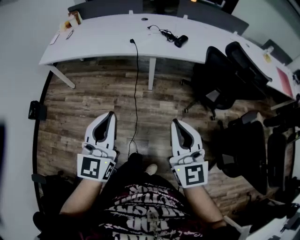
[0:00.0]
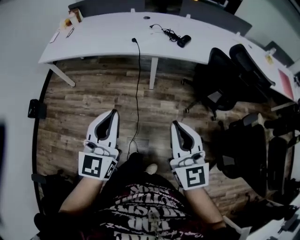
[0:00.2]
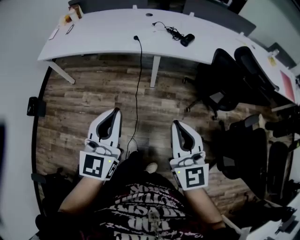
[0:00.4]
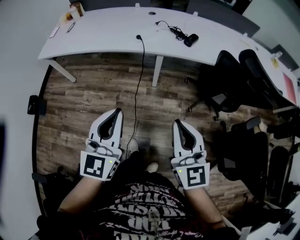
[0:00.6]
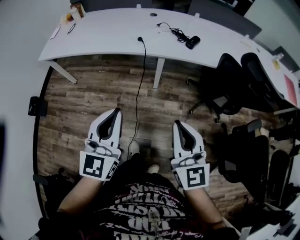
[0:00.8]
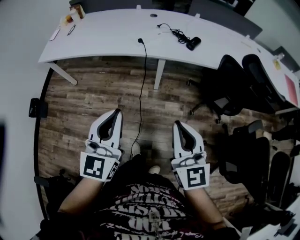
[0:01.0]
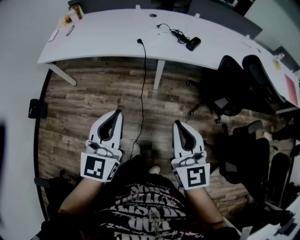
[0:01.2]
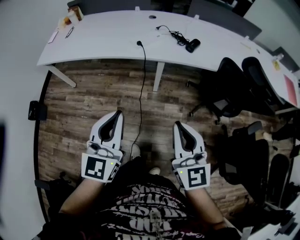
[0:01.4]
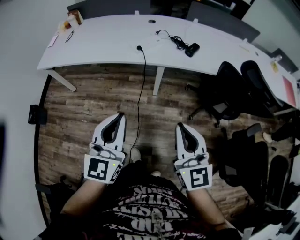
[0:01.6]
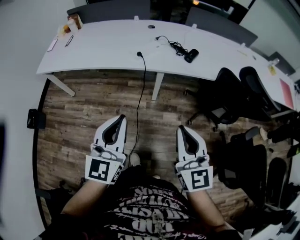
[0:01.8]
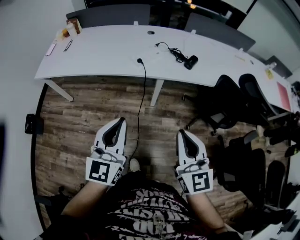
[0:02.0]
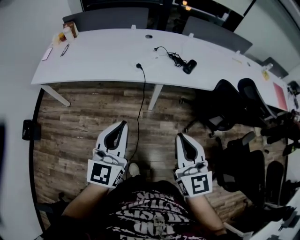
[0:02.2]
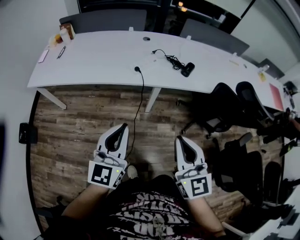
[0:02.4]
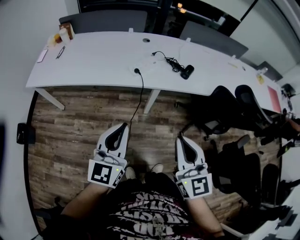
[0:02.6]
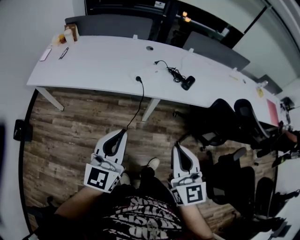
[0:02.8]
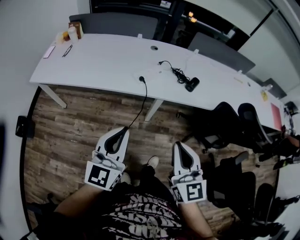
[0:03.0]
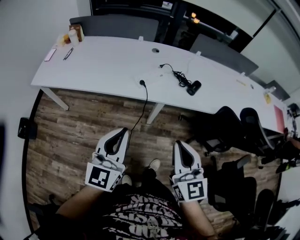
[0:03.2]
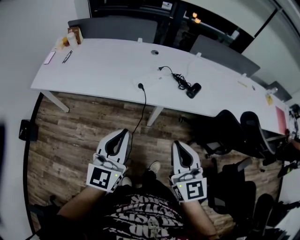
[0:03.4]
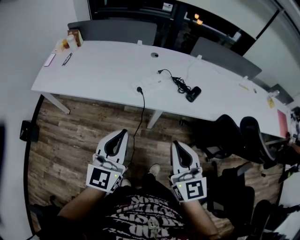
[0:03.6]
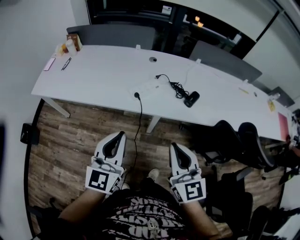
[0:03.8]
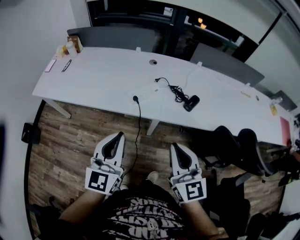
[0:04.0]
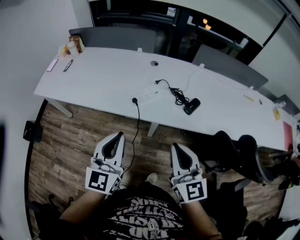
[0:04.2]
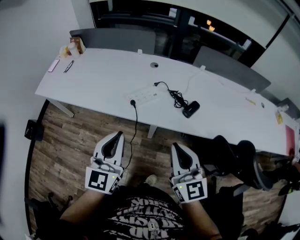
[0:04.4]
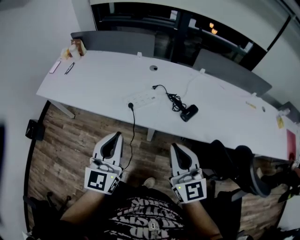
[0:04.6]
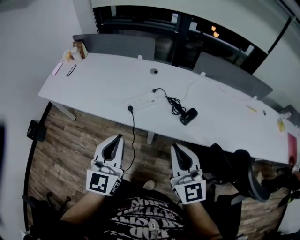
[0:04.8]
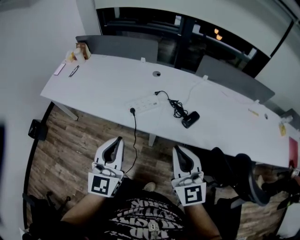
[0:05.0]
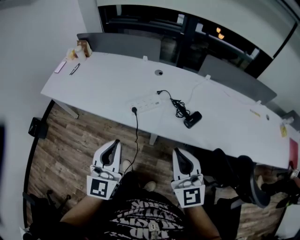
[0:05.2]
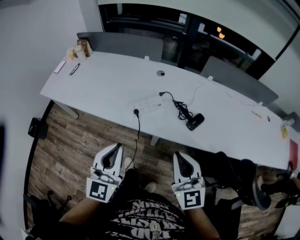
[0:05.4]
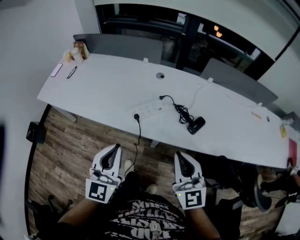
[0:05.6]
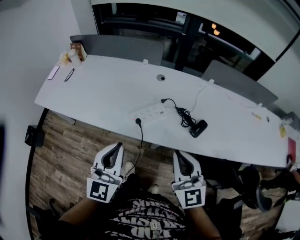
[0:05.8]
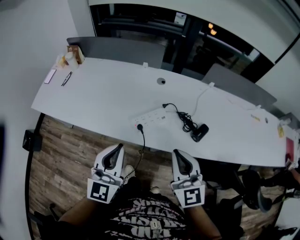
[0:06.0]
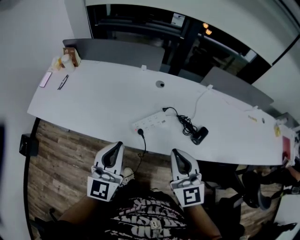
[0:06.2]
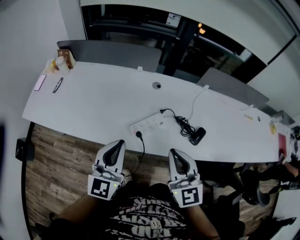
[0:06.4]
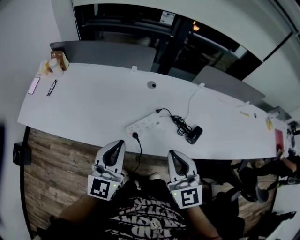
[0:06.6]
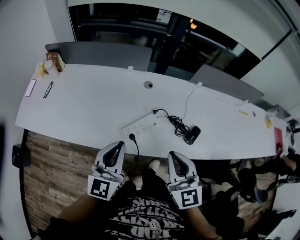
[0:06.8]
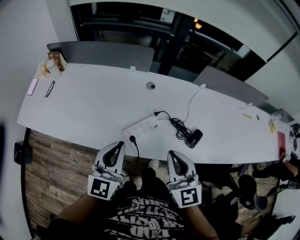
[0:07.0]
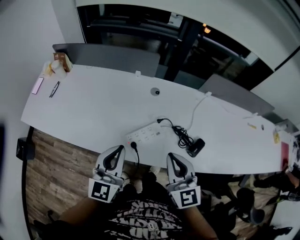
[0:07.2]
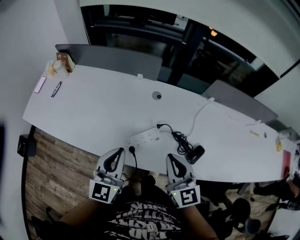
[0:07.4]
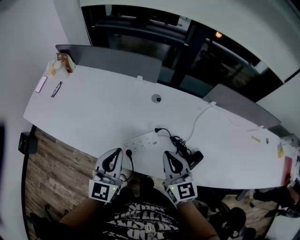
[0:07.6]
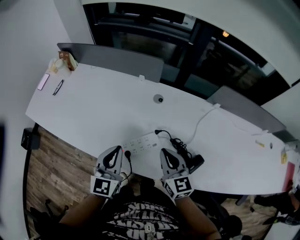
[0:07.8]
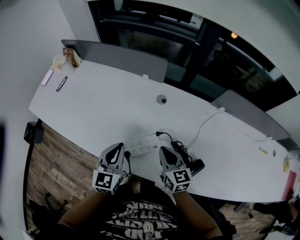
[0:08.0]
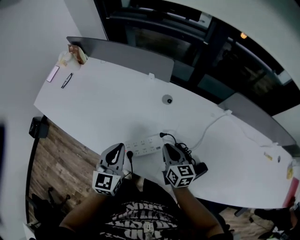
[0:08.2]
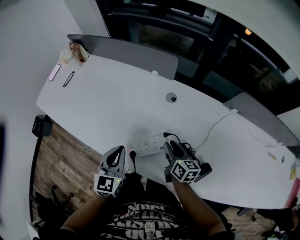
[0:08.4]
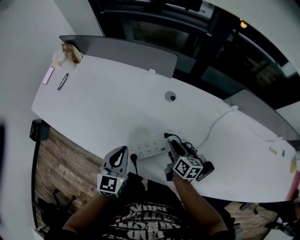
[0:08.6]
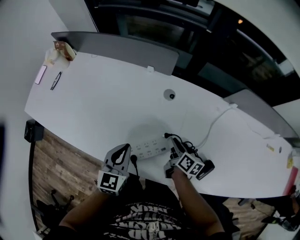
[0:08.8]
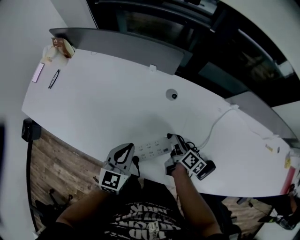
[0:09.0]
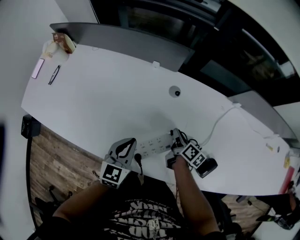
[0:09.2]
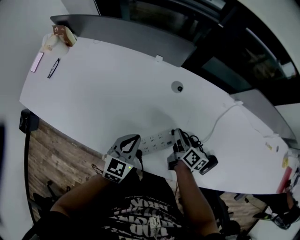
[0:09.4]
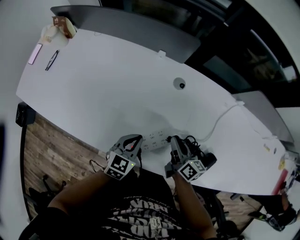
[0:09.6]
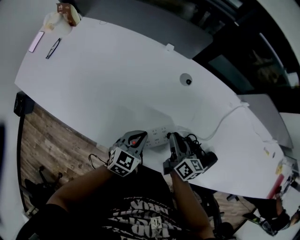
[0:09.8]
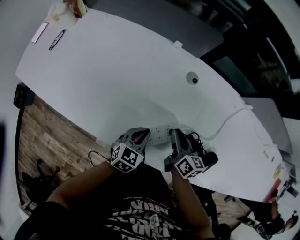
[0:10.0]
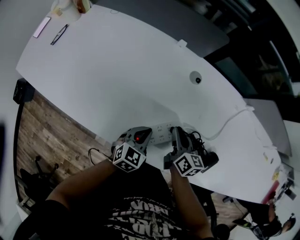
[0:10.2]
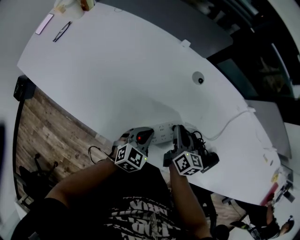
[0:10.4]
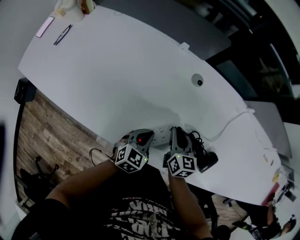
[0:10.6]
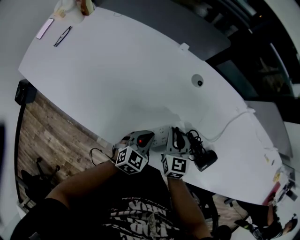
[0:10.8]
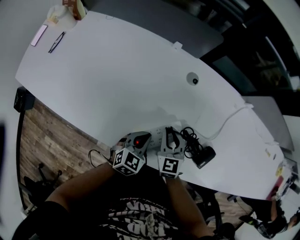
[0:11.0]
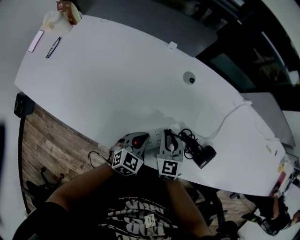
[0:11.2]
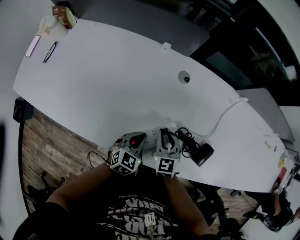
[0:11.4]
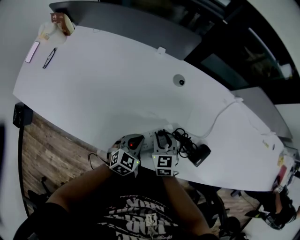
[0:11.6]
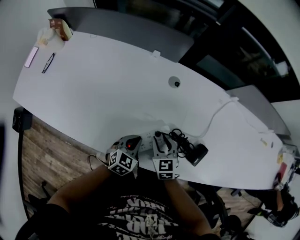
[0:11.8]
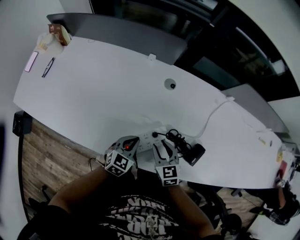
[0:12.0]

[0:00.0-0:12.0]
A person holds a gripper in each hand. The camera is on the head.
0.0 to 1.6 s: The grippers both shift forward by roughly 10 cm.
1.6 to 3.0 s: Both grippers move forward and to the left, approximately 10 cm.
3.0 to 4.4 s: Both grippers travel together forward and to the right, about 20 cm.
4.4 to 6.0 s: Both grippers travel together forward and to the left, about 15 cm.
6.0 to 7.6 s: The left gripper heads forward, covering roughly 15 cm, while the right gripper is displaced forward and downward by some 20 cm.
7.6 to 9.0 s: The right gripper moves downward and forward, some 25 cm, rotates around the line of its fingers by roughly 60 degrees, clockwise from behind, and opens up; the left gripper is displaced downward and forward by some 15 cm.
9.0 to 10.4 s: The right gripper moves to the left, about 5 cm, and turns by roughly 30 degrees; the left gripper moves downward, approximately 15 cm, and swivels approximately 20 degrees.
10.4 to 12.0 s: The right gripper is displaced backward by roughly 5 cm, and changes its angle by about 30 degrees.

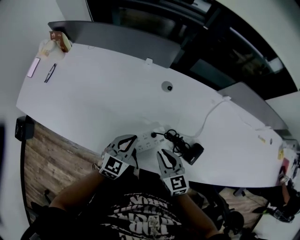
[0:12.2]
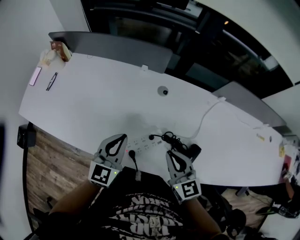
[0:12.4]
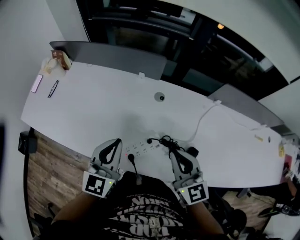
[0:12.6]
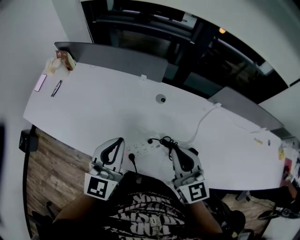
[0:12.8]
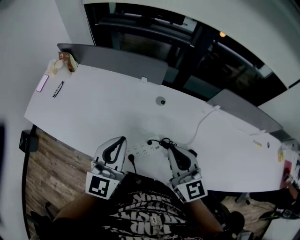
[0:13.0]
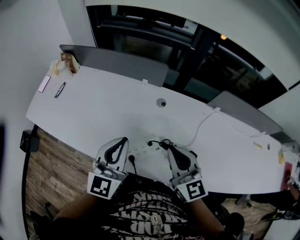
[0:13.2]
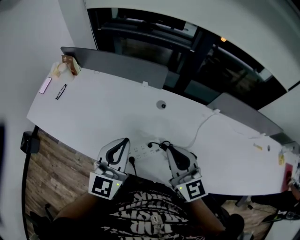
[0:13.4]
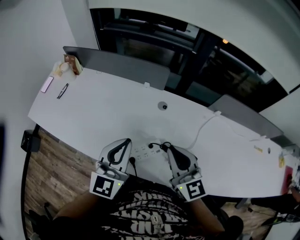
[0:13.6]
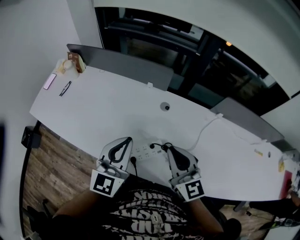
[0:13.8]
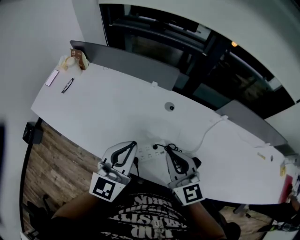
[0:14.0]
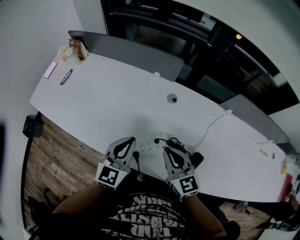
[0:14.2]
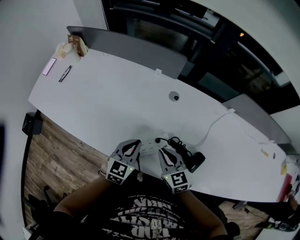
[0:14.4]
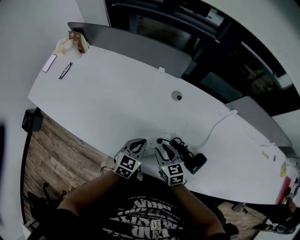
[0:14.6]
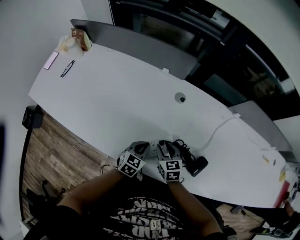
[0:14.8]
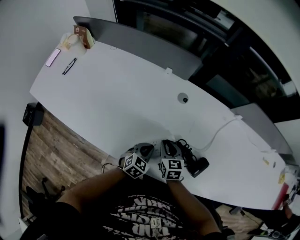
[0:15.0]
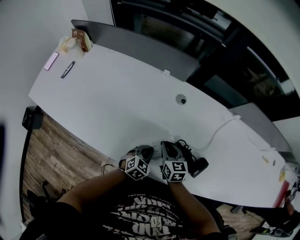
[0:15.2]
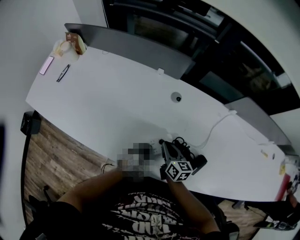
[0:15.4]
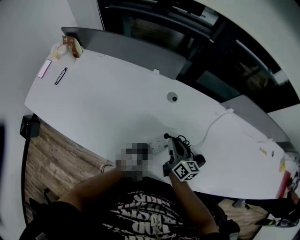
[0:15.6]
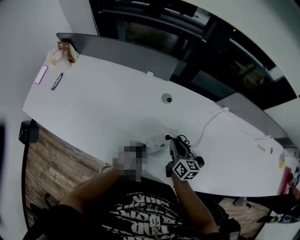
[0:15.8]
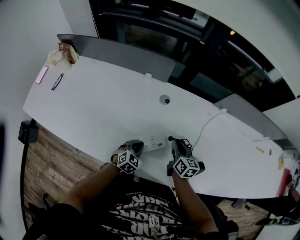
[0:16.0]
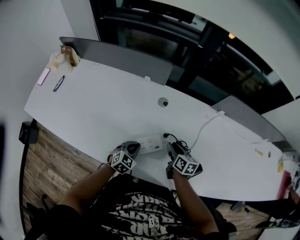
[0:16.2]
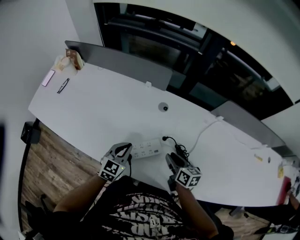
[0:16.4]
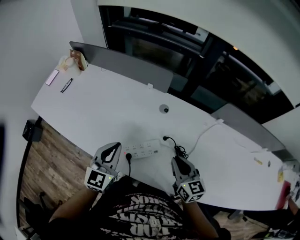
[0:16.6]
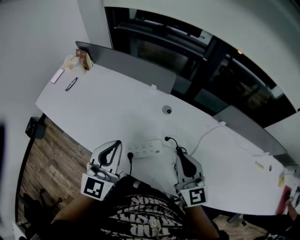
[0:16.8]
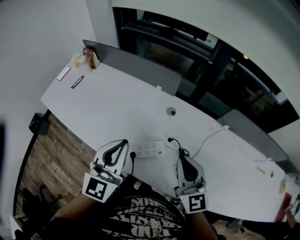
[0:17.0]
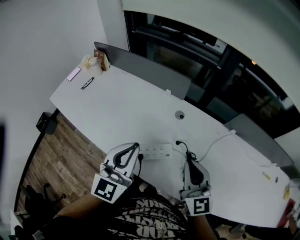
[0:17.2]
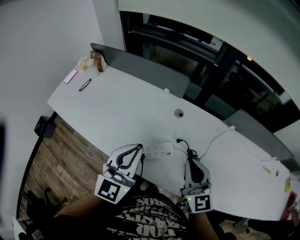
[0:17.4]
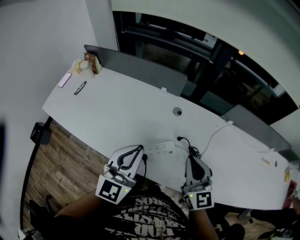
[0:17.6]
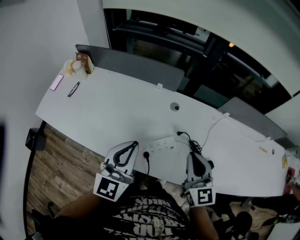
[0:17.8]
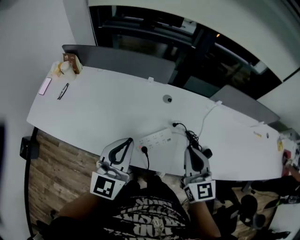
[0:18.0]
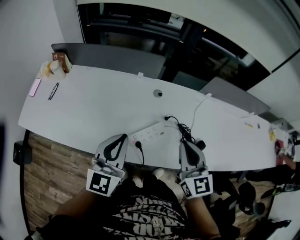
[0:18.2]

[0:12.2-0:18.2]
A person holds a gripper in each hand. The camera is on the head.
12.2 to 13.8 s: Both grippers travel together upward, about 20 cm. The right gripper rotates approximately 20 degrees; the left gripper turns by some 30 degrees.
13.8 to 15.2 s: Both grippers travel together downward, some 30 cm. The right gripper rotates some 40 degrees, and opens and closes again; the left gripper tilts its fingers about 40 degrees downward.
15.2 to 16.6 s: The left gripper goes approximately 25 cm upward, and points its fingers about 30 degrees further upward. The right gripper swings up and down, approximately 15 cm each way, with 2 reversals.
16.6 to 18.2 s: The left gripper shifts approximately 10 cm upward and to the left. Meanwhile the right gripper goes some 15 cm upward, to the left and backward, and turns by roughly 30 degrees.

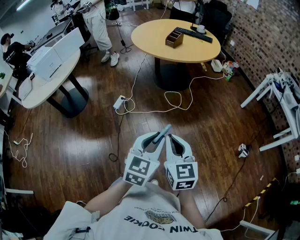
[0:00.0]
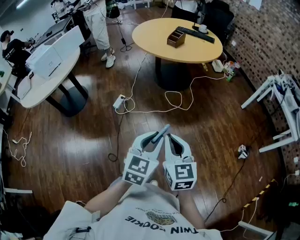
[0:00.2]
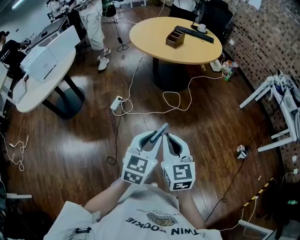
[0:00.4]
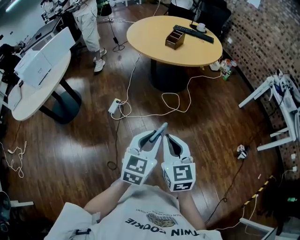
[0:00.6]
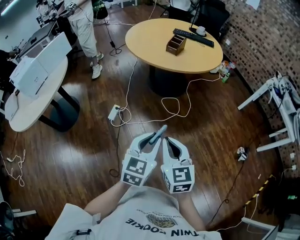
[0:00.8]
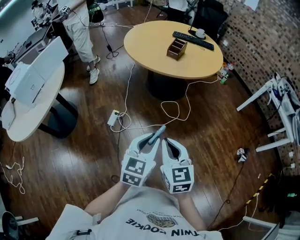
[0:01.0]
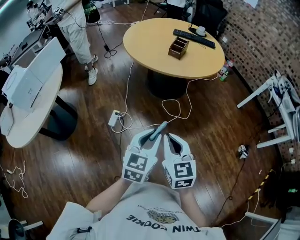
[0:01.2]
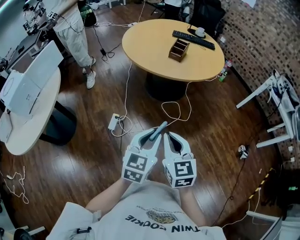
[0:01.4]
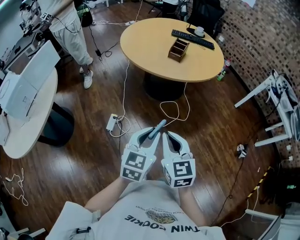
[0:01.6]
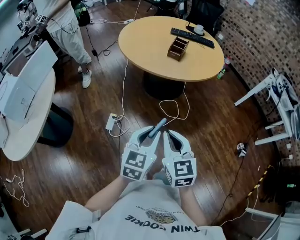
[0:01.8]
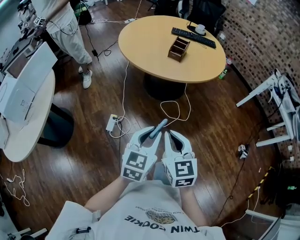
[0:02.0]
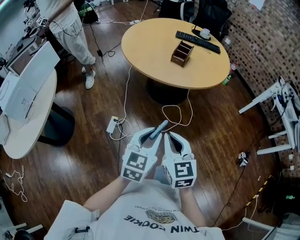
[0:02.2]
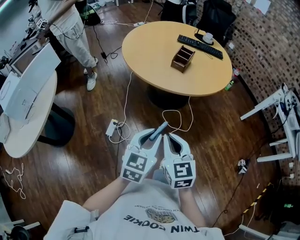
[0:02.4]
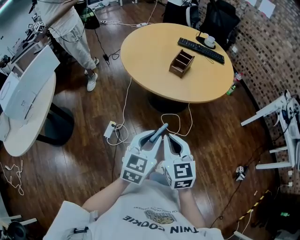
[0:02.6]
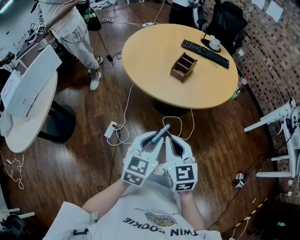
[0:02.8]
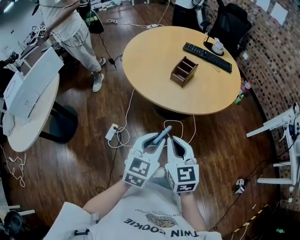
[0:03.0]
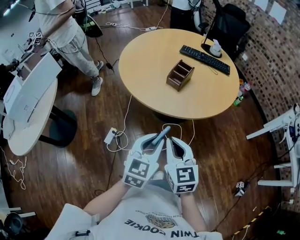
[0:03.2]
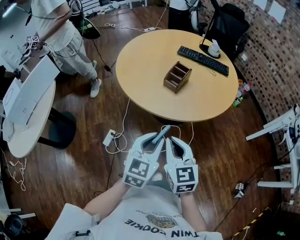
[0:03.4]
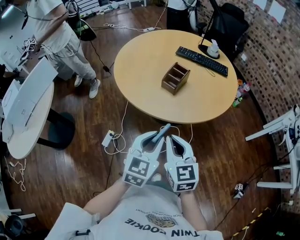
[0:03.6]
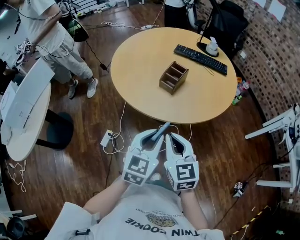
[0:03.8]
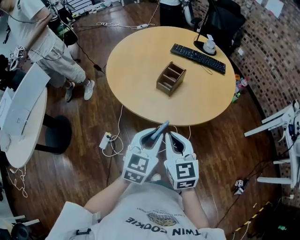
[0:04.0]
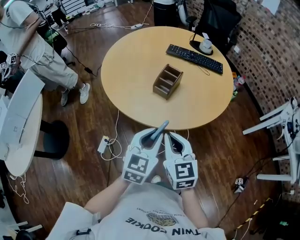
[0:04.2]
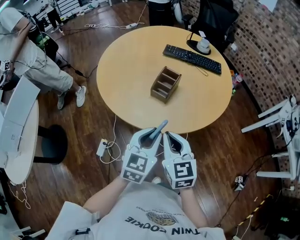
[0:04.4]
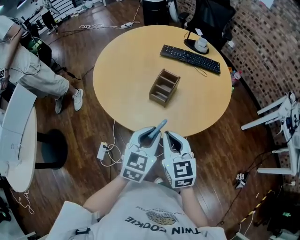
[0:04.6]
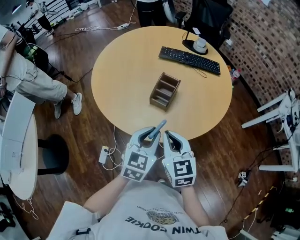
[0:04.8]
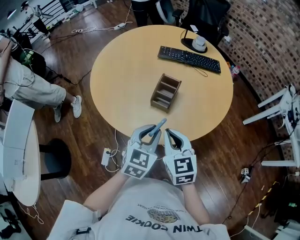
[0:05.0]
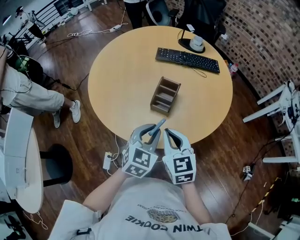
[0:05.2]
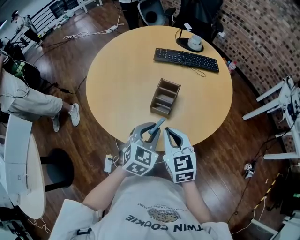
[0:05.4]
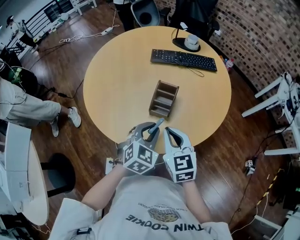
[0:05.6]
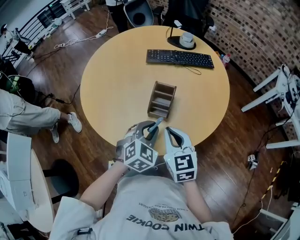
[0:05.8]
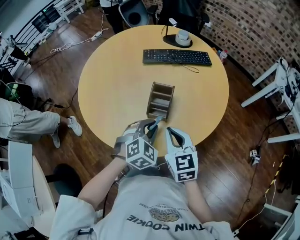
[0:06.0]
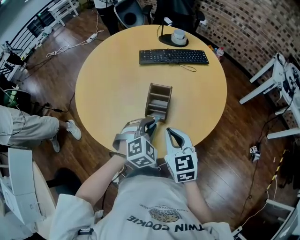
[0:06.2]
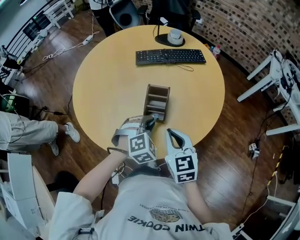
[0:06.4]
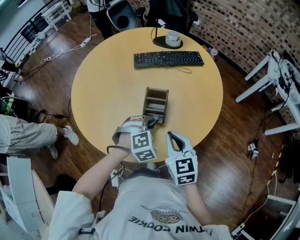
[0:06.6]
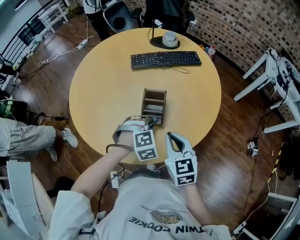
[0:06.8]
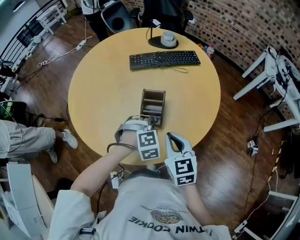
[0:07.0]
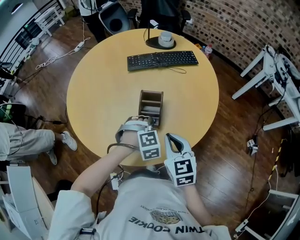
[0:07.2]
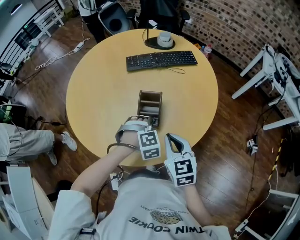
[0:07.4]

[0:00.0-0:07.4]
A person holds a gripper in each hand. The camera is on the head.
0.0 to 1.4 s: The two grippers go approximately 35 cm forward and to the left.
1.4 to 3.0 s: Both grippers travel together forward and to the right, approximately 25 cm.
3.0 to 4.4 s: The two grippers go about 20 cm forward.
4.4 to 6.0 s: The left gripper moves forward and downward, about 20 cm, and rolls clockwise, seen from behind, by approximately 40 degrees, while the right gripper goes about 15 cm forward.
6.0 to 7.4 s: The left gripper is displaced downward and forward by some 10 cm, and swivels some 40 degrees.
